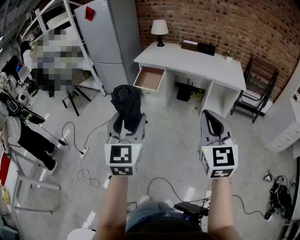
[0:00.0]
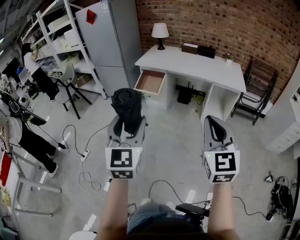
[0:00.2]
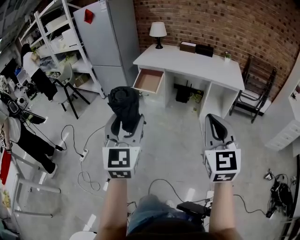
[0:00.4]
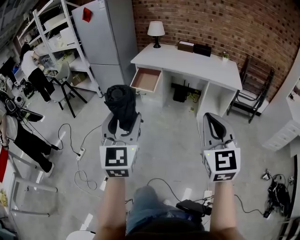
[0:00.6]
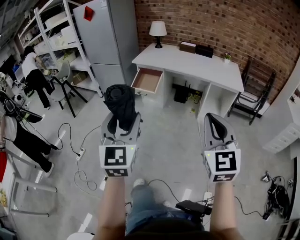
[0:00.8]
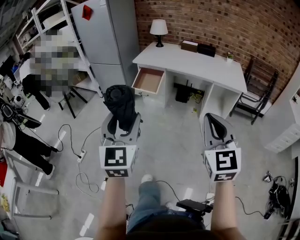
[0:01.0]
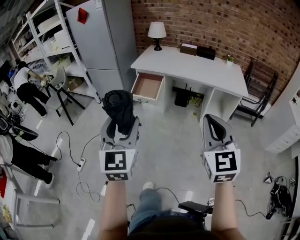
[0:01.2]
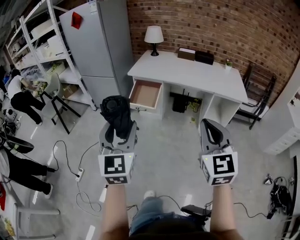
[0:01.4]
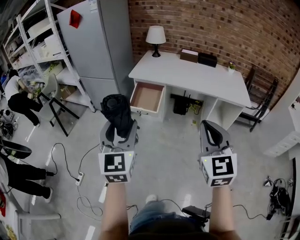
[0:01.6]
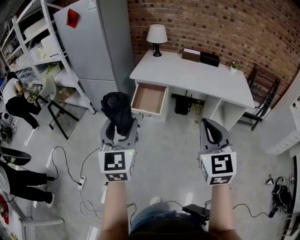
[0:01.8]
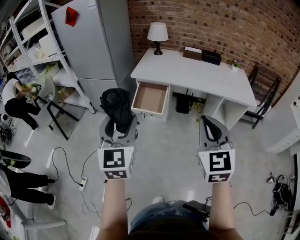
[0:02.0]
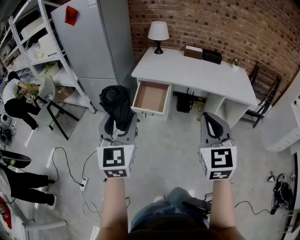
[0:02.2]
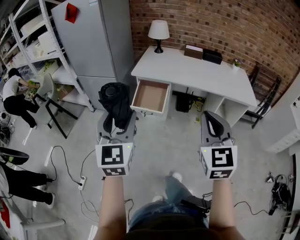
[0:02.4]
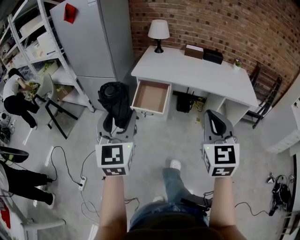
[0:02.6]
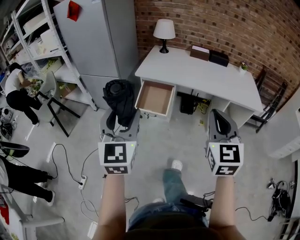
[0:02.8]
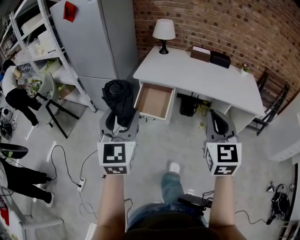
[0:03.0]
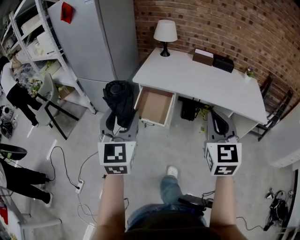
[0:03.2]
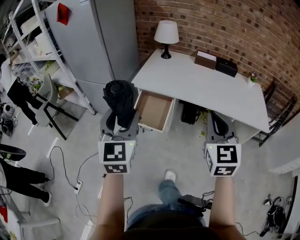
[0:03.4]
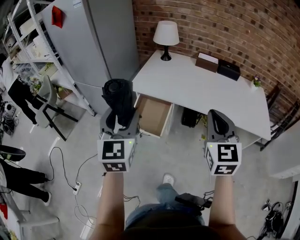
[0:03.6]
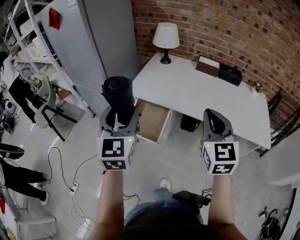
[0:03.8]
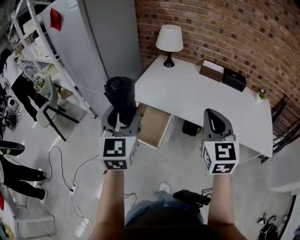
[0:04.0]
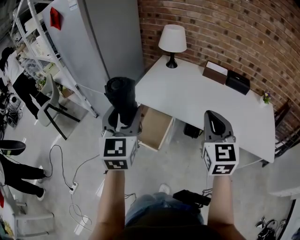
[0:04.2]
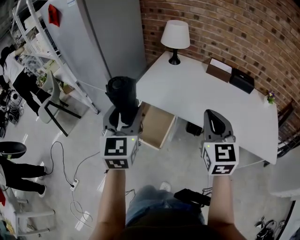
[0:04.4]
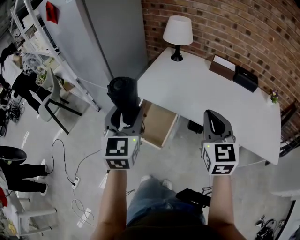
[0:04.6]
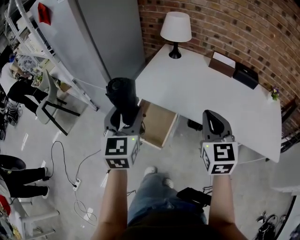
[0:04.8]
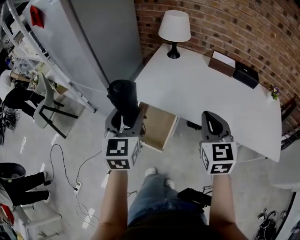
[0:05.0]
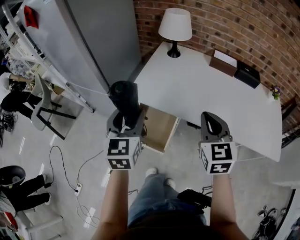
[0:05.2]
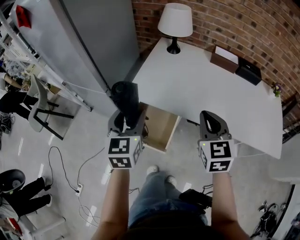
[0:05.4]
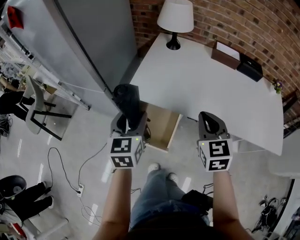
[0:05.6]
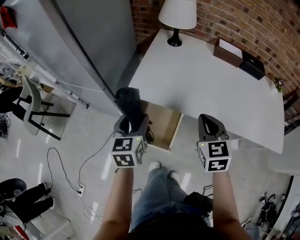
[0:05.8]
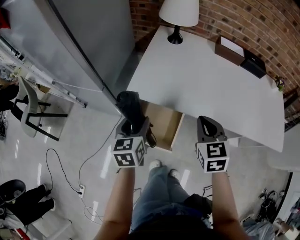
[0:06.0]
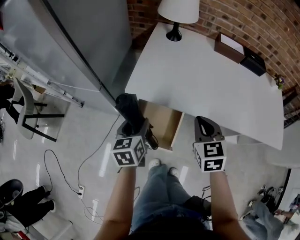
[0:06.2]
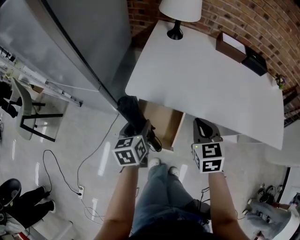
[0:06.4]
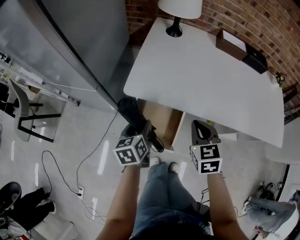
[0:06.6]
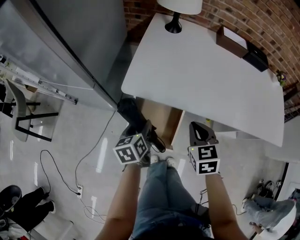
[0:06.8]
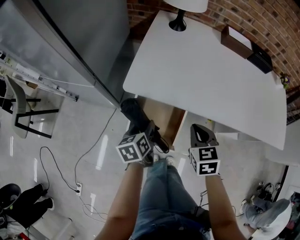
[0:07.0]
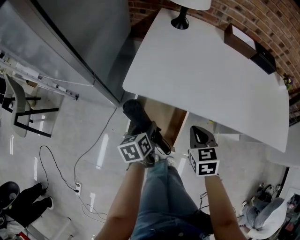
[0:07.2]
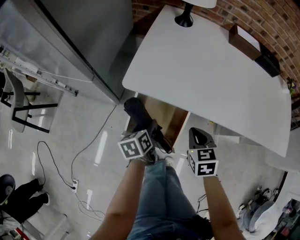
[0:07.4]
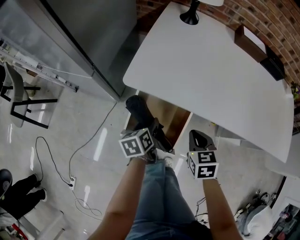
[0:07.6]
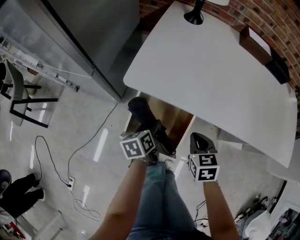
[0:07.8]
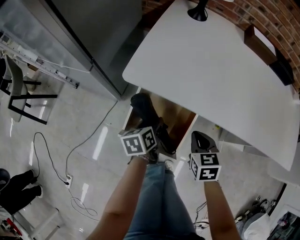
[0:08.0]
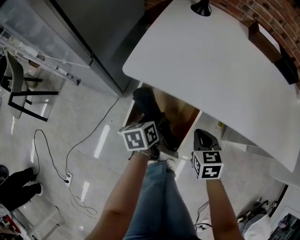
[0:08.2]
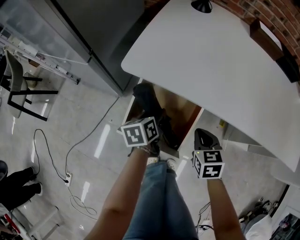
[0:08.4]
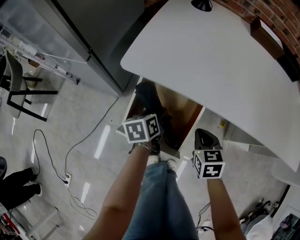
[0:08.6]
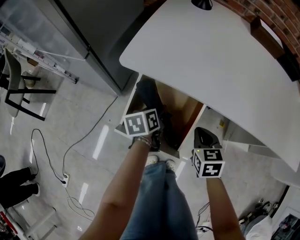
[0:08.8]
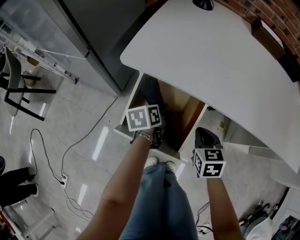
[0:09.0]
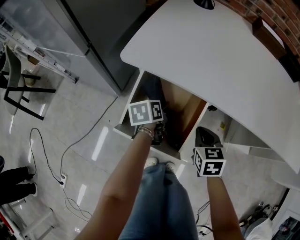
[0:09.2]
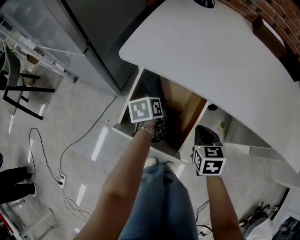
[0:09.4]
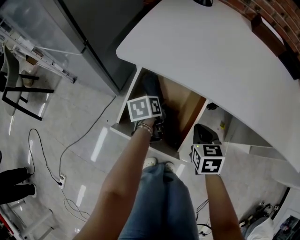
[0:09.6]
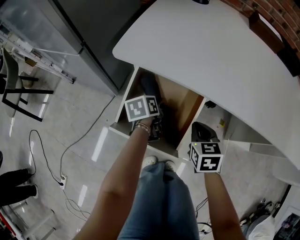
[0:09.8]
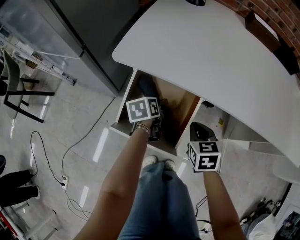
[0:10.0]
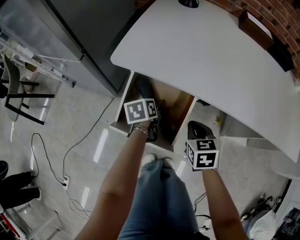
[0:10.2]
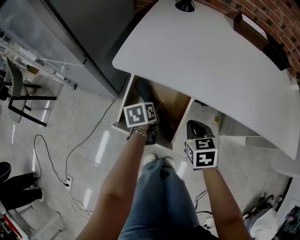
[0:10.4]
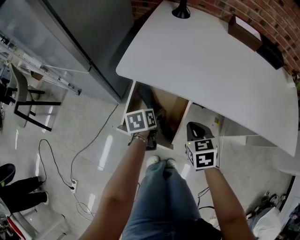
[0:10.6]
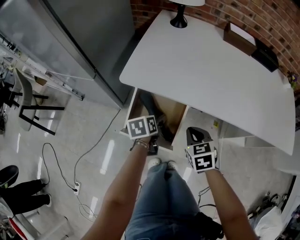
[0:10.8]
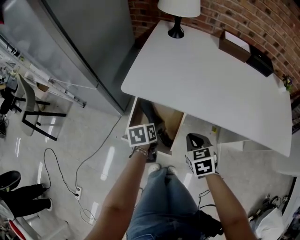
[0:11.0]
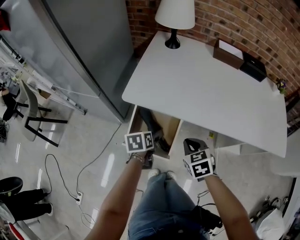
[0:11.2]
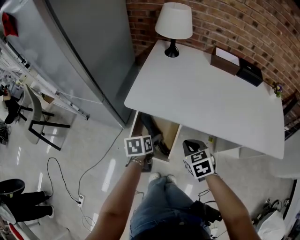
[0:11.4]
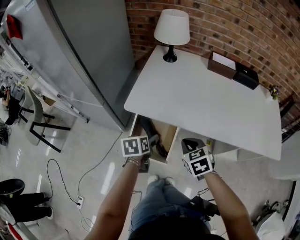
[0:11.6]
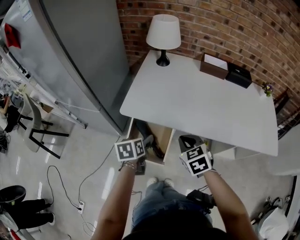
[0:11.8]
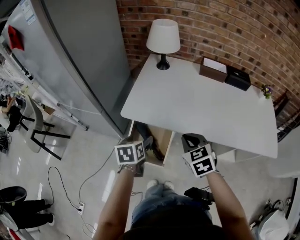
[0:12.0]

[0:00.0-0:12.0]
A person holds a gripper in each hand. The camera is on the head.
0:00.0 to 0:01.6: The grippers both shift forward and to the left by about 25 cm.
0:01.6 to 0:03.0: Both grippers move forward, approximately 15 cm.
0:03.0 to 0:04.4: Both grippers travel together forward, roughly 30 cm.
0:04.4 to 0:06.0: The right gripper heads downward, forward and to the left, covering about 25 cm, and turns by roughly 30 degrees. Meanwhile the left gripper goes roughly 25 cm downward and forward, and changes its angle by roughly 30 degrees.
0:06.0 to 0:07.6: The grippers both shift downward by about 20 cm. The left gripper rotates roughly 30 degrees.
0:07.6 to 0:09.0: The left gripper moves downward and forward, roughly 10 cm; the right gripper heads downward, covering some 10 cm.
0:09.0 to 0:10.4: The left gripper opens.
0:10.4 to 0:12.0: The grippers both shift upward by approximately 25 cm.

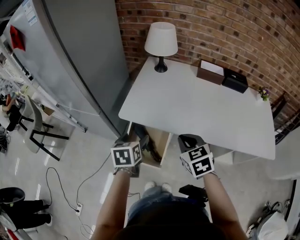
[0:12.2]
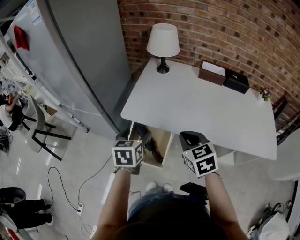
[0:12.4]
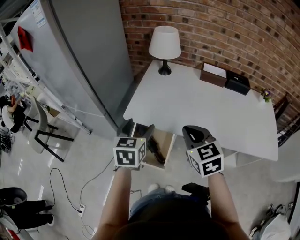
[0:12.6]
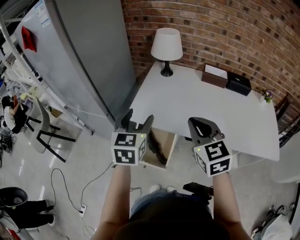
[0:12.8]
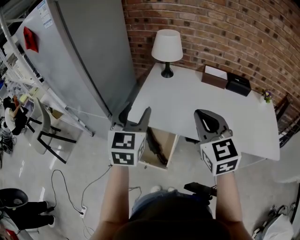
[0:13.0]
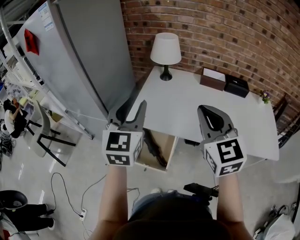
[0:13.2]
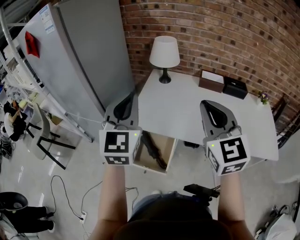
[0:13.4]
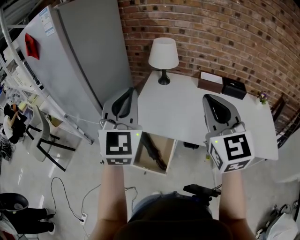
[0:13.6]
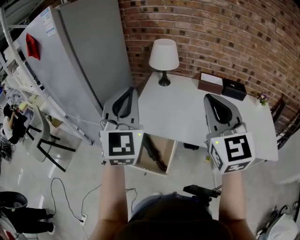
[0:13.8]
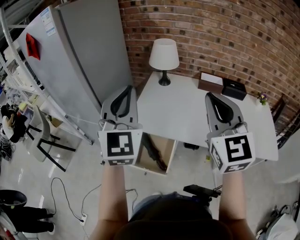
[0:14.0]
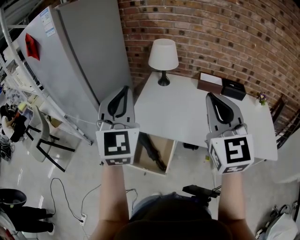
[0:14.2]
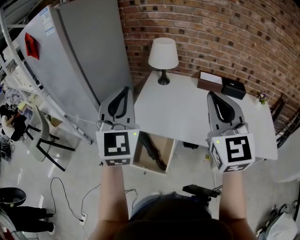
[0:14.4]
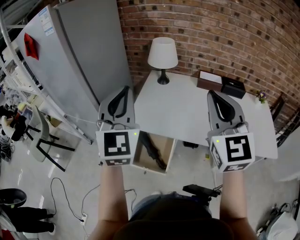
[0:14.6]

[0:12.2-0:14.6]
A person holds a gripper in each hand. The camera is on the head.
0:12.2 to 0:13.4: The grippers both shift upward by roughly 25 cm. The right gripper tilts its fingers about 40 degrees upward, while the left gripper tips its fingers upward by approximately 40 degrees, and closes up.
0:13.4 to 0:14.6: There are only small adjustments of the grippers.

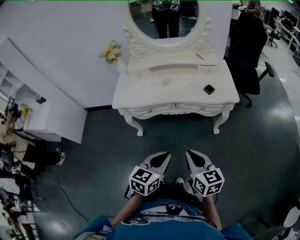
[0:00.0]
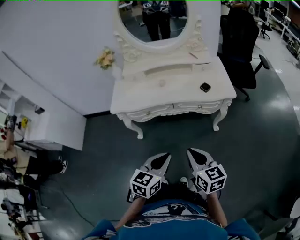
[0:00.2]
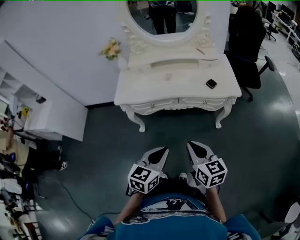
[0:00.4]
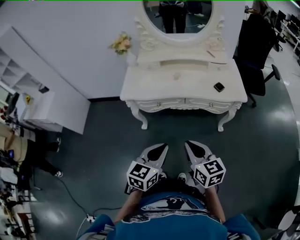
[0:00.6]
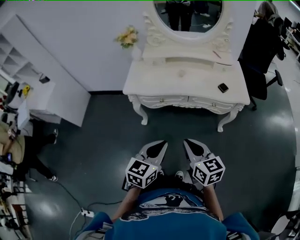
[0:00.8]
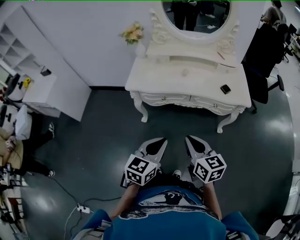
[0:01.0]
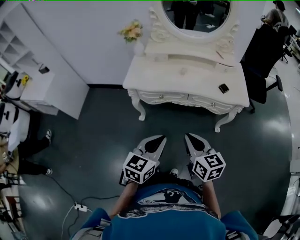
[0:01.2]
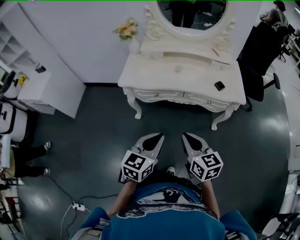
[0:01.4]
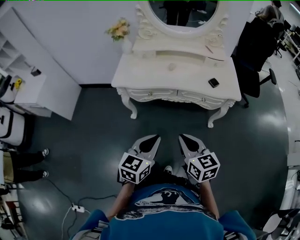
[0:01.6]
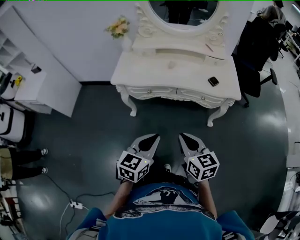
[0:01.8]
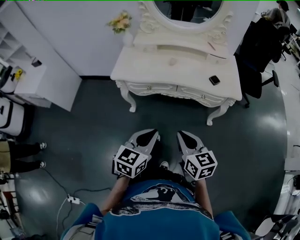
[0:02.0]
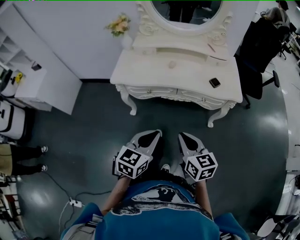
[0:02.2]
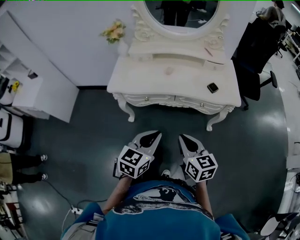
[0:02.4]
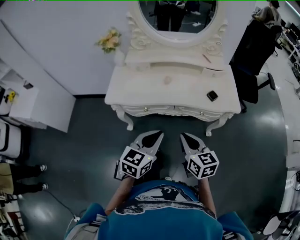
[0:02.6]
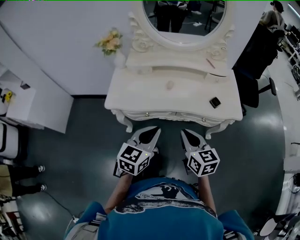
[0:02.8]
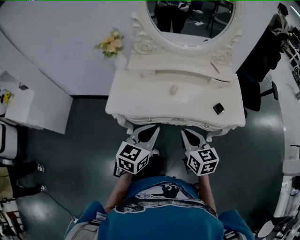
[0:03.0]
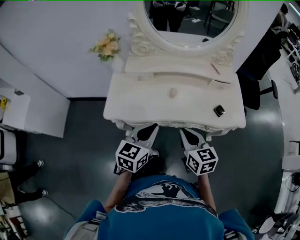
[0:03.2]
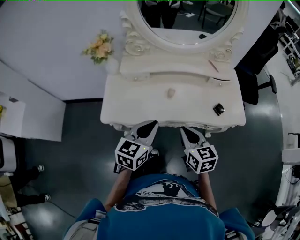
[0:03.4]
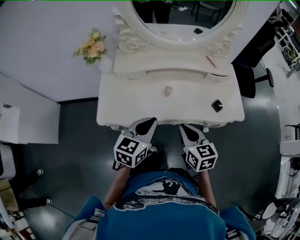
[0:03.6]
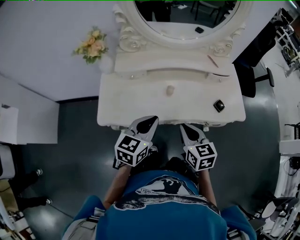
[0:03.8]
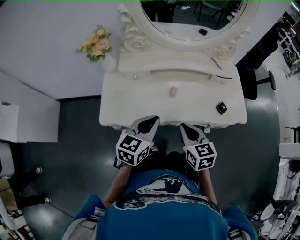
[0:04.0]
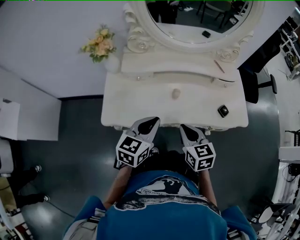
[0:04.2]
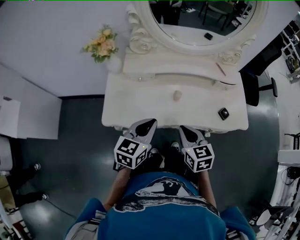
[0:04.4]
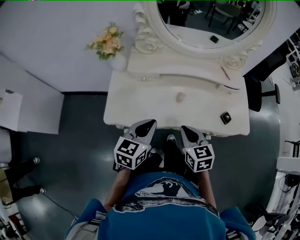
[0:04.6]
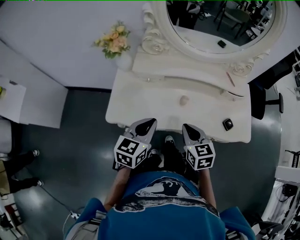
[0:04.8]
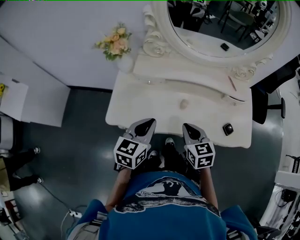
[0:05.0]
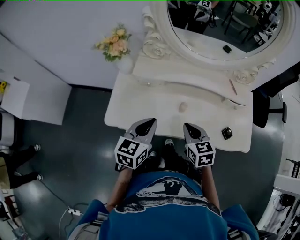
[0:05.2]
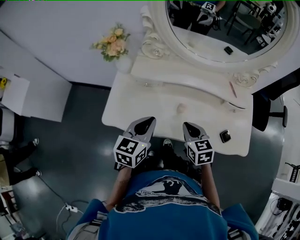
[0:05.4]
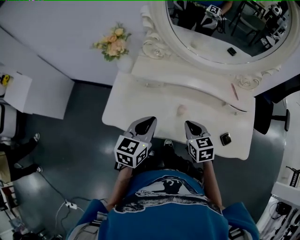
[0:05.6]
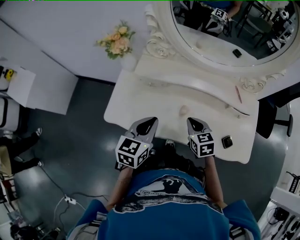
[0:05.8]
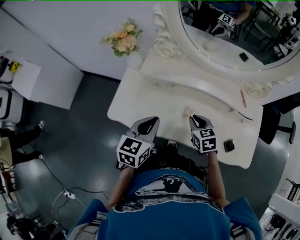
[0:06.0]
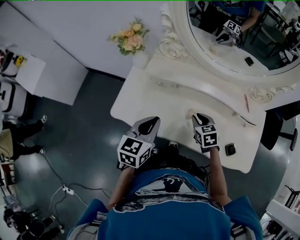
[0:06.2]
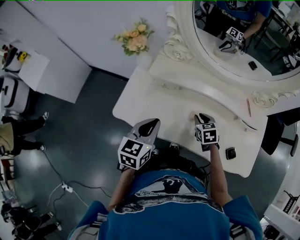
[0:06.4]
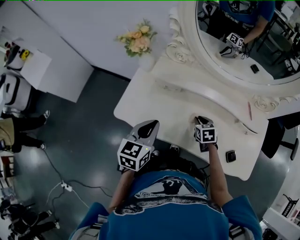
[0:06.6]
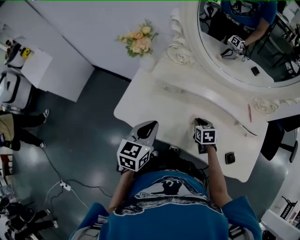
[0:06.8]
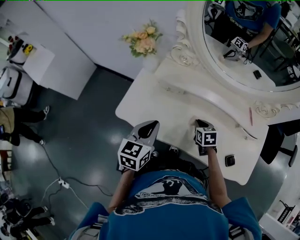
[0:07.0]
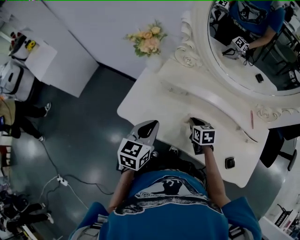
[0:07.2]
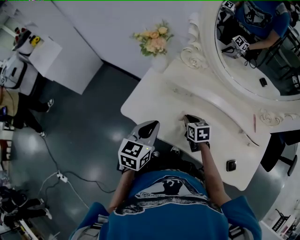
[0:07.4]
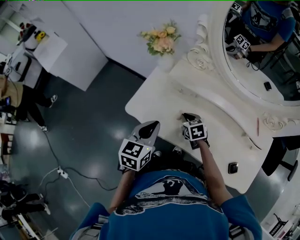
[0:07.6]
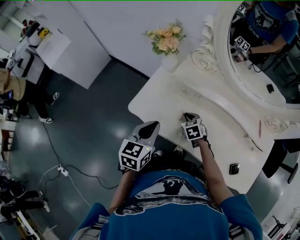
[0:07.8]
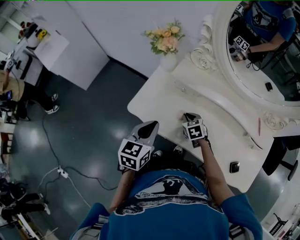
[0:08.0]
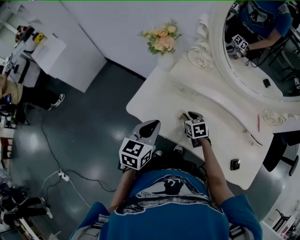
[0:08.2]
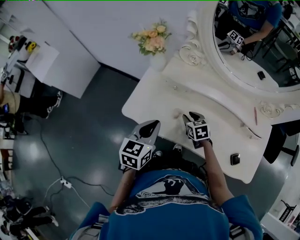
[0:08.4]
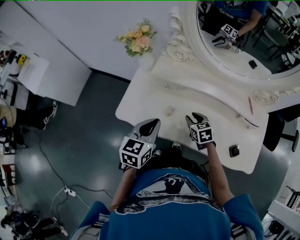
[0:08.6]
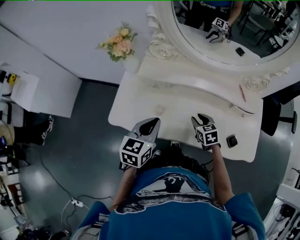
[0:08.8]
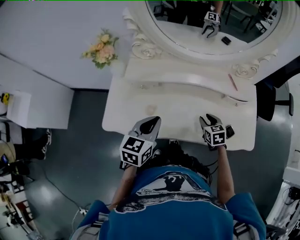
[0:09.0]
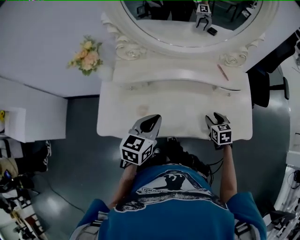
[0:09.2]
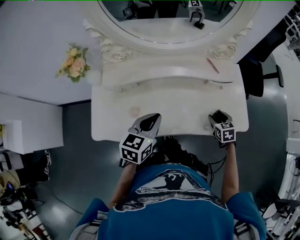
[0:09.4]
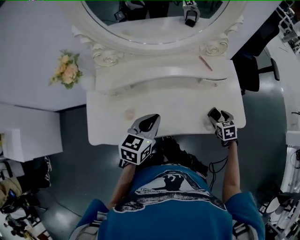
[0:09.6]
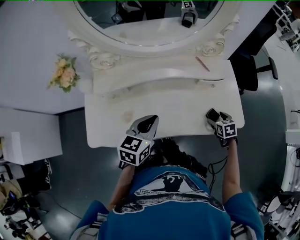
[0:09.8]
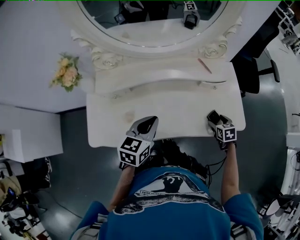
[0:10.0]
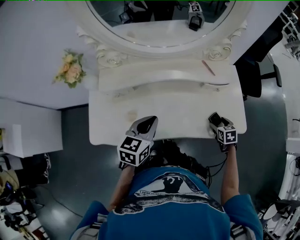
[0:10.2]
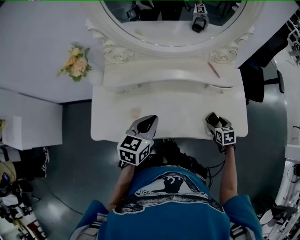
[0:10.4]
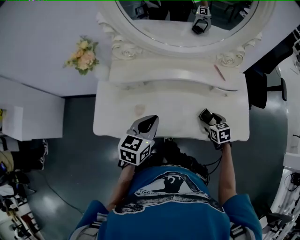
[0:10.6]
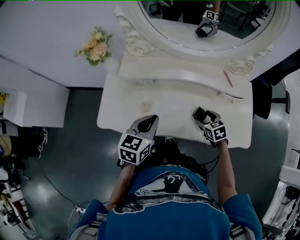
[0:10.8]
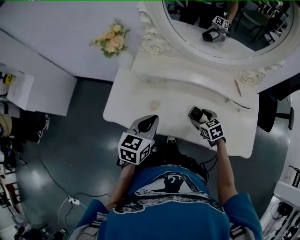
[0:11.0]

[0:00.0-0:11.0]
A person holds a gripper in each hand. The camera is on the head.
0:01.6 to 0:03.2: Both grippers travel together forward, approximately 30 cm.
0:03.2 to 0:04.8: The right gripper is displaced forward by approximately 10 cm. Meanwhile the left gripper travels forward and to the left by some 10 cm.
0:04.8 to 0:06.2: The right gripper shifts some 20 cm forward and downward, and changes its angle by approximately 20 degrees. The left gripper is displaced forward by roughly 5 cm.
0:06.2 to 0:07.8: The right gripper shifts about 15 cm to the left; the left gripper heads to the left, covering roughly 10 cm.
0:07.8 to 0:09.4: The right gripper ends up about 40 cm from where it was, rotates about 50 degrees, and opens; the left gripper ends up roughly 20 cm from where it was, and turns by about 40 degrees.
0:09.4 to 0:11.0: The left gripper moves about 10 cm; the right gripper ends up some 20 cm from where it was, and swivels about 30 degrees.
